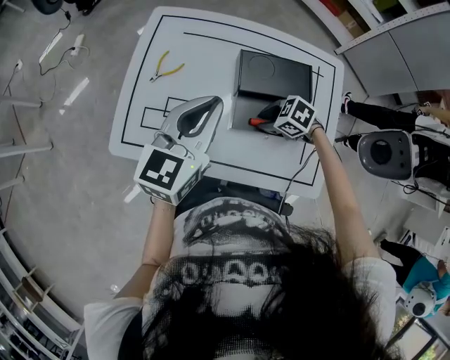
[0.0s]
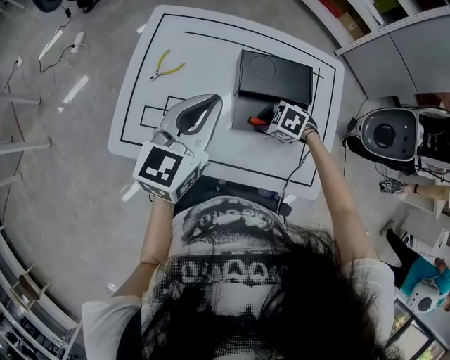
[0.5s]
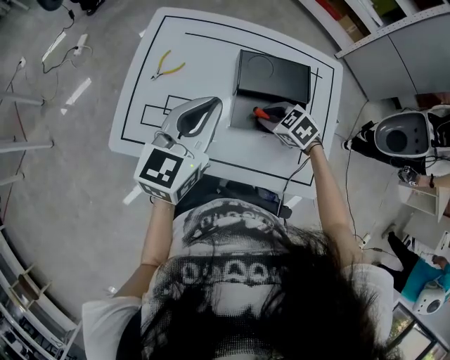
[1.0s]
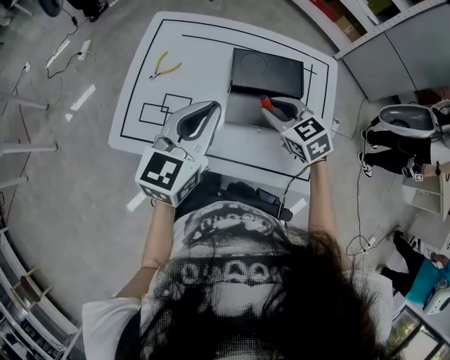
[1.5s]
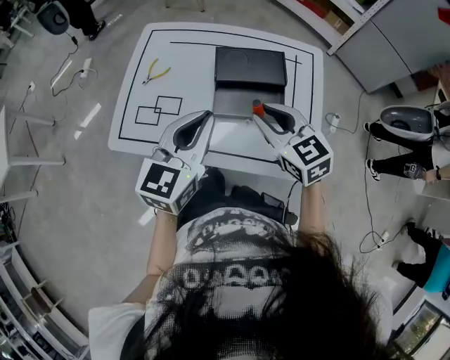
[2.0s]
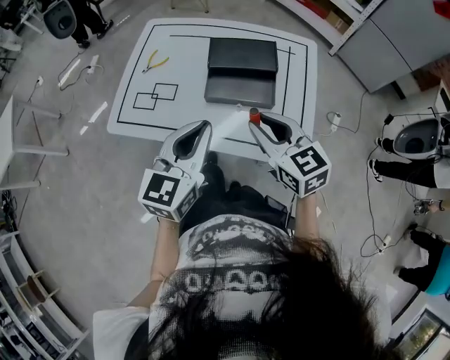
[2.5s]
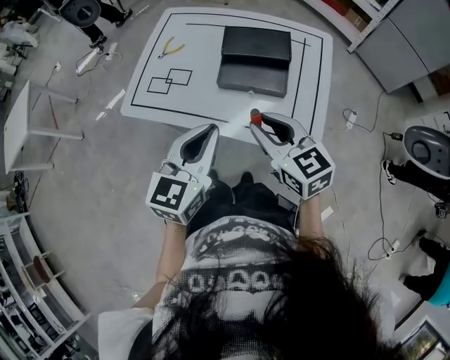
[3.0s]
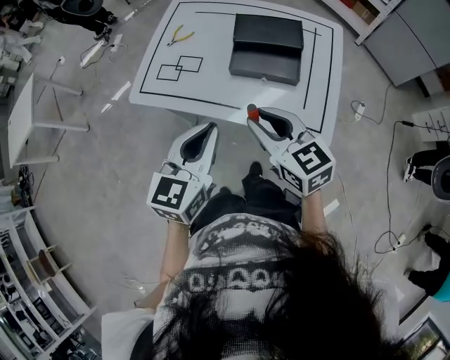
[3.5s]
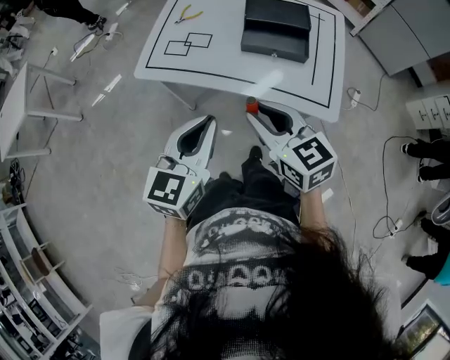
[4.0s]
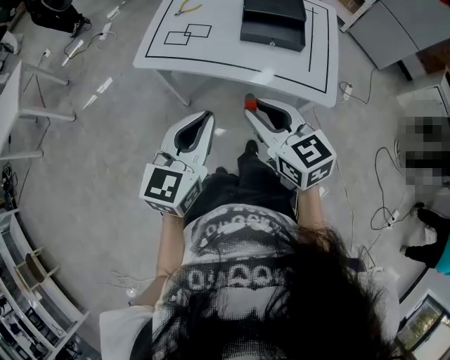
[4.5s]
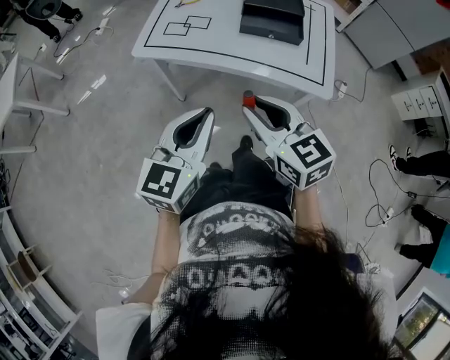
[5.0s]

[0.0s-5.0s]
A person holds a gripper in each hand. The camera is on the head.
0.0s to 2.5s: The right gripper heads upward, covering approximately 20 cm, and tips its fingers upward by roughly 40 degrees; the left gripper ends up about 20 cm from where it was.
2.5s to 5.0s: Both grippers move backward and to the left, some 30 cm.

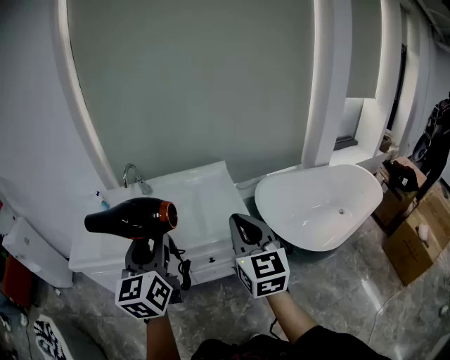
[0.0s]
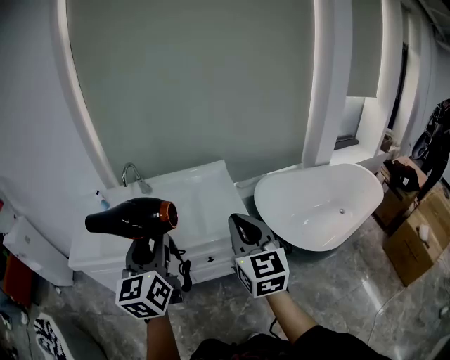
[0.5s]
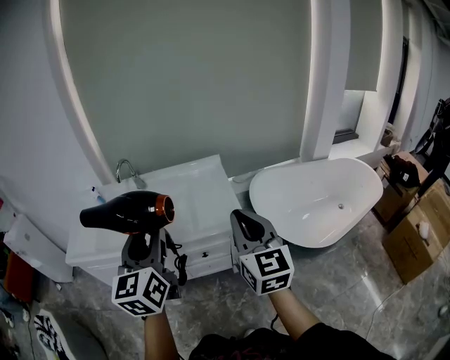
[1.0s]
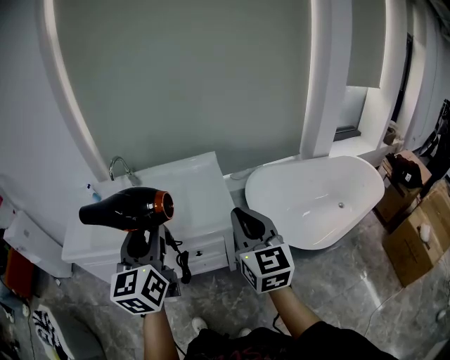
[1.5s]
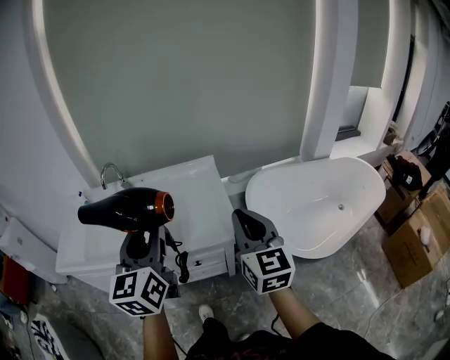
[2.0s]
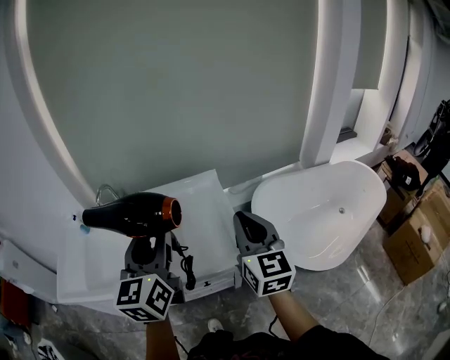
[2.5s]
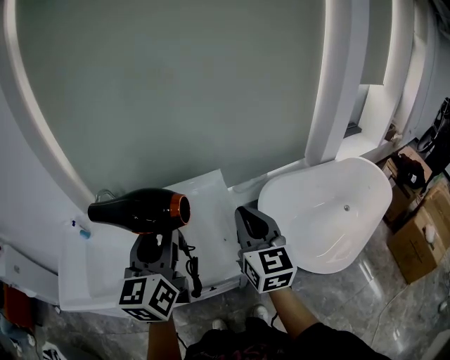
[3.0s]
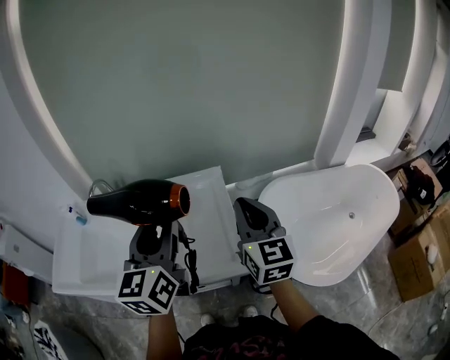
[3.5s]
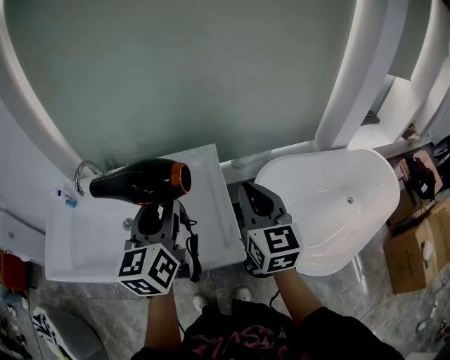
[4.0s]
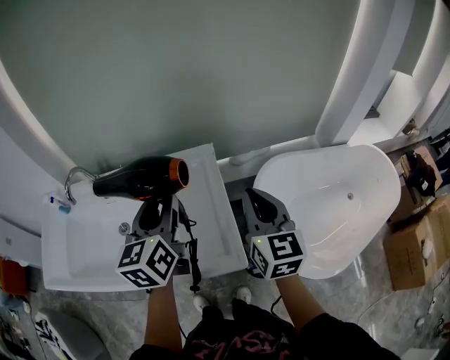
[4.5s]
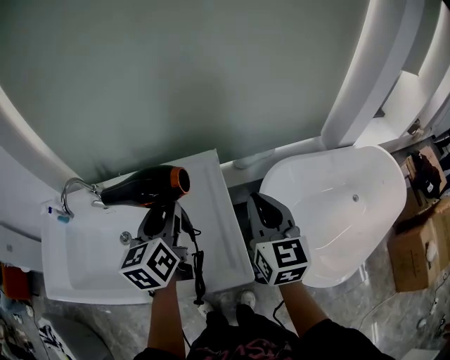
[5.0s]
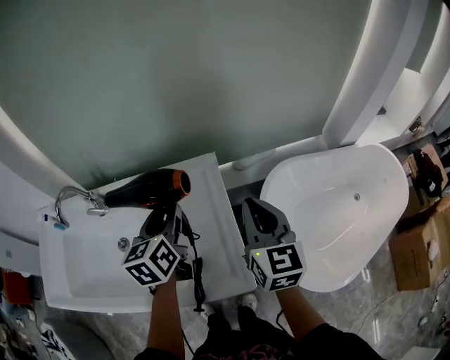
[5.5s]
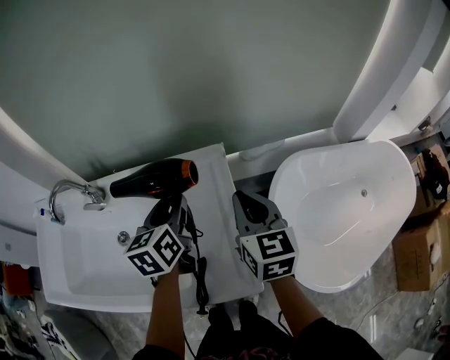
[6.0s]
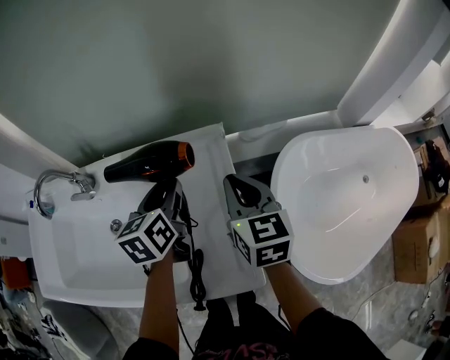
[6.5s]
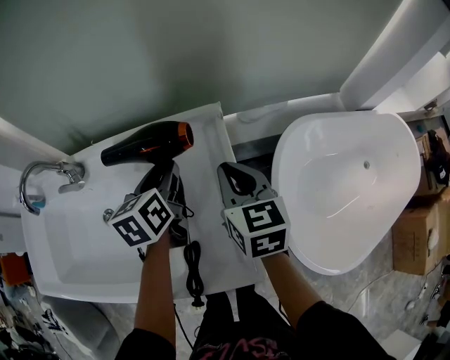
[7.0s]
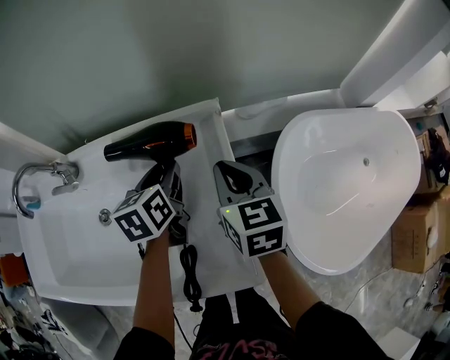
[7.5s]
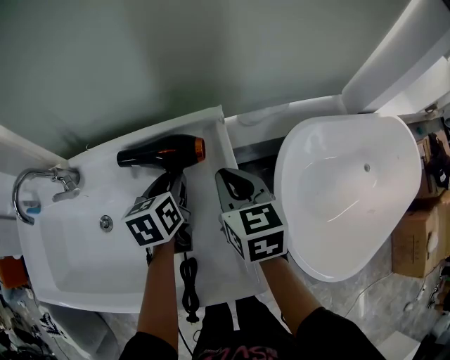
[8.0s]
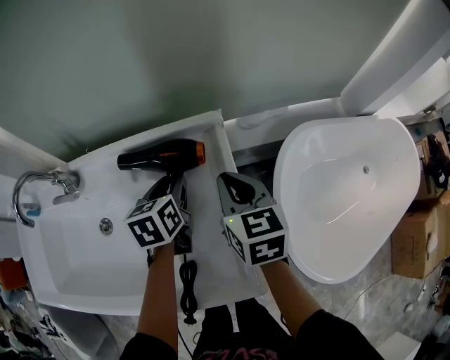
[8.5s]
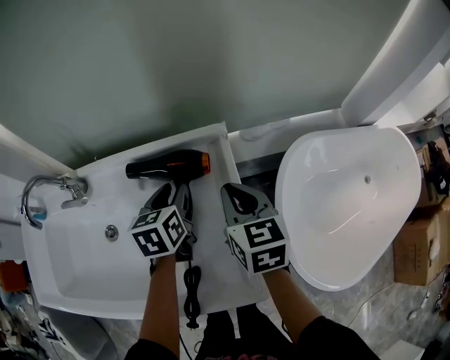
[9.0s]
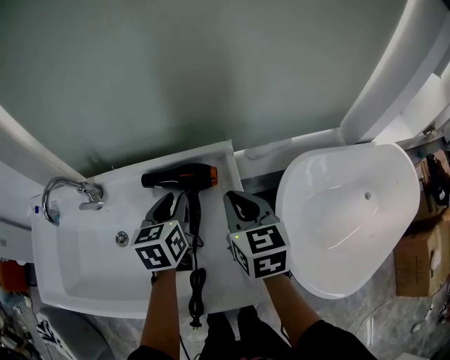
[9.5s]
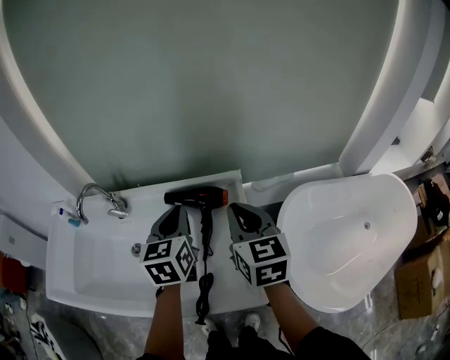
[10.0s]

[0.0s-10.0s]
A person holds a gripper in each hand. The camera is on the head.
0.0s to 2.0s: The grippers both shift to the right and forward by about 10 cm.
2.0s to 4.0s: The grippers both shift forward by about 20 cm.
4.0s to 6.0s: The left gripper moves downward and forward, approximately 25 cm, and turns by approximately 20 degrees; the right gripper travels forward and downward by roughly 15 cm.
6.0s to 8.0s: The two grippers go about 10 cm downward.
8.0s to 10.0s: Both grippers move upward, roughly 20 cm. The left gripper rotates approximately 20 degrees, and closes up.

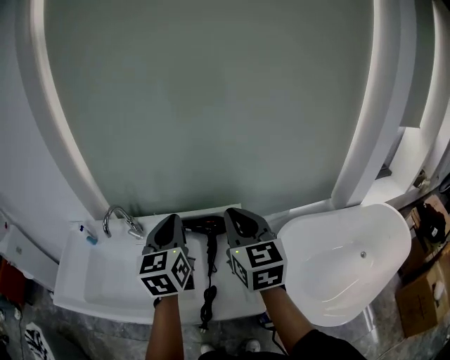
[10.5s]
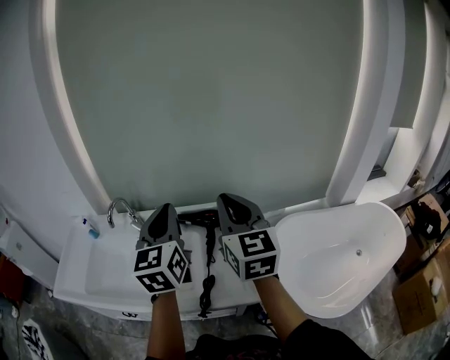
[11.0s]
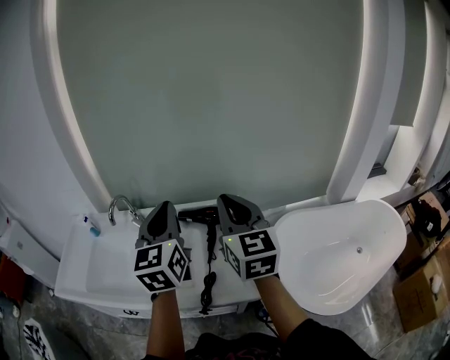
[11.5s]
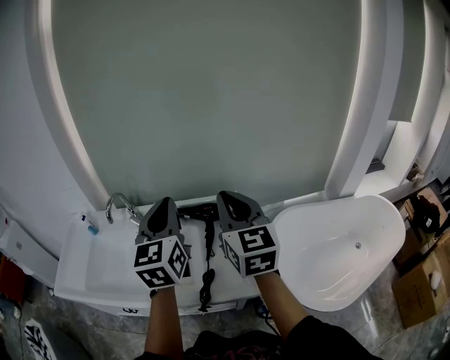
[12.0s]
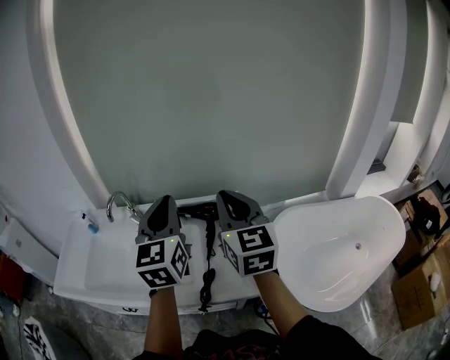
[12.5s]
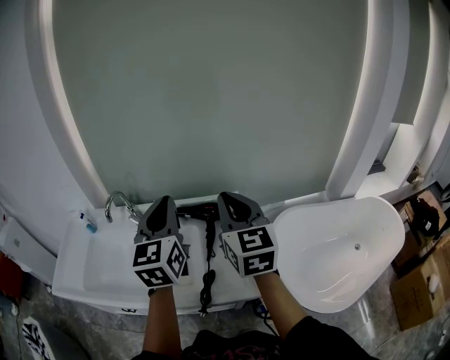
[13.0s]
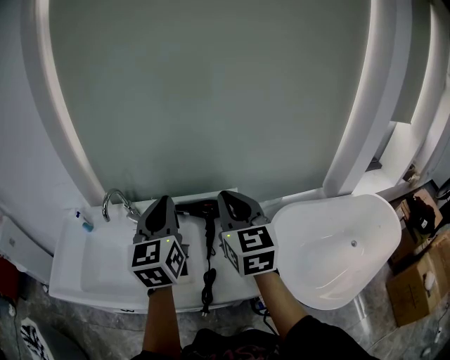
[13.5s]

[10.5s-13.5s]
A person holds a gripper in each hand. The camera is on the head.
10.5s to 12.0s: The left gripper moves backward, roughly 5 cm; the right gripper shifts by approximately 5 cm.
12.0s to 13.5s: The grippers move only a little.

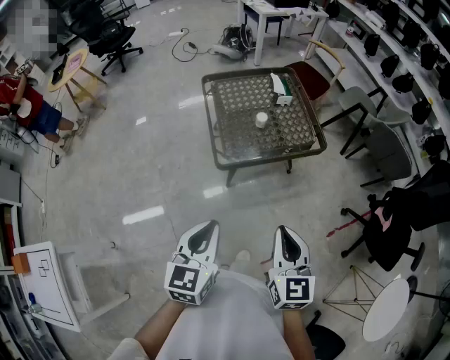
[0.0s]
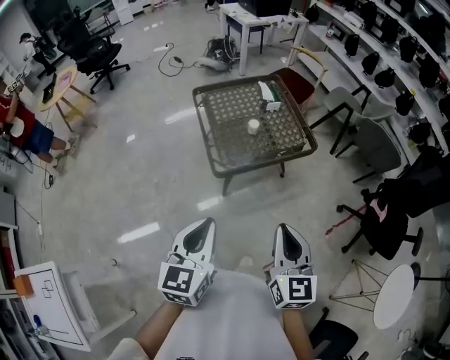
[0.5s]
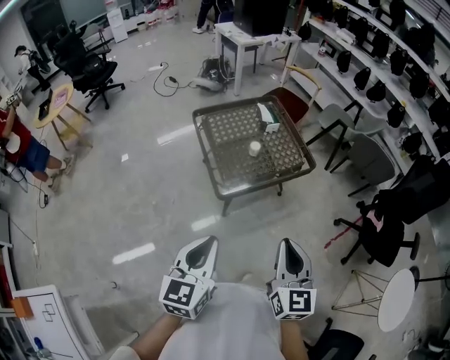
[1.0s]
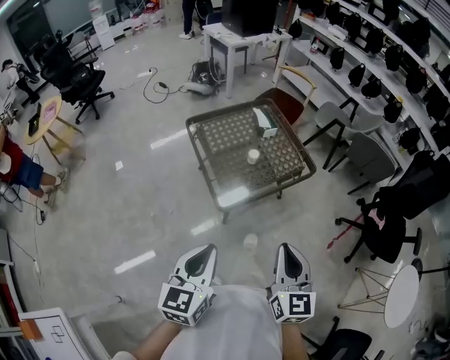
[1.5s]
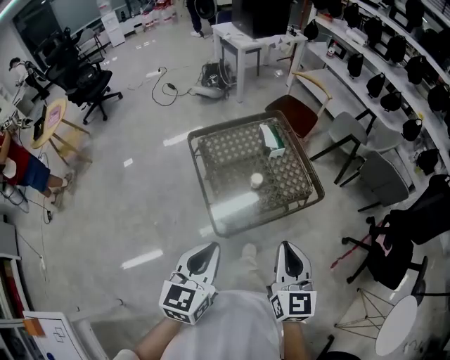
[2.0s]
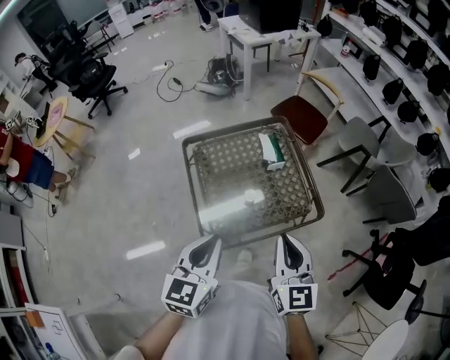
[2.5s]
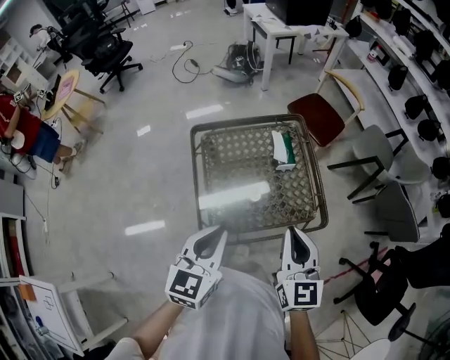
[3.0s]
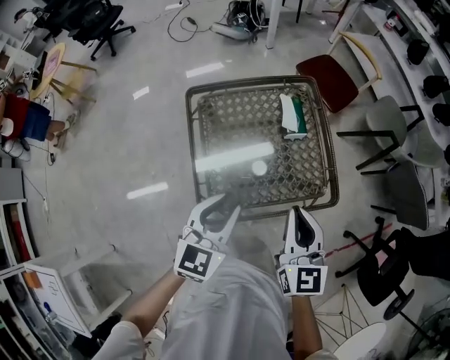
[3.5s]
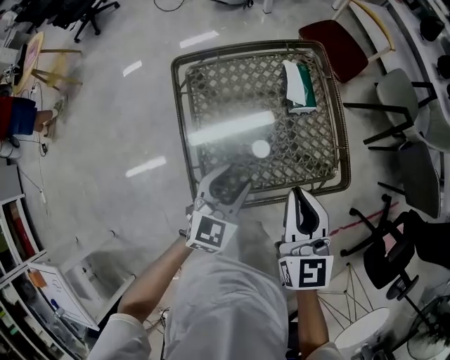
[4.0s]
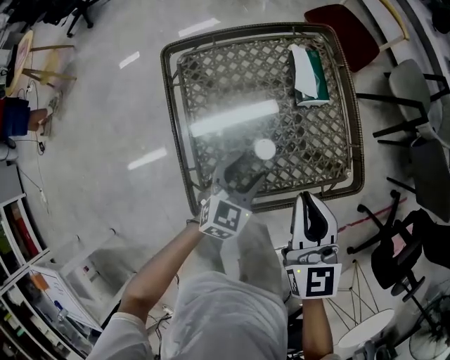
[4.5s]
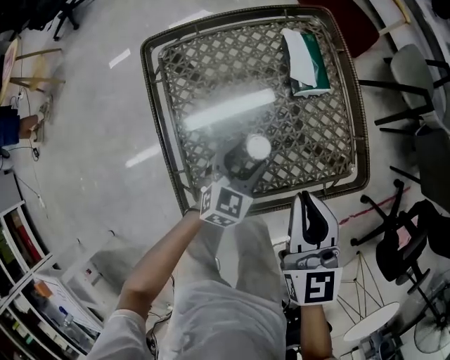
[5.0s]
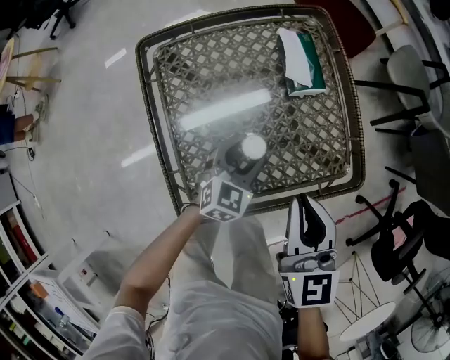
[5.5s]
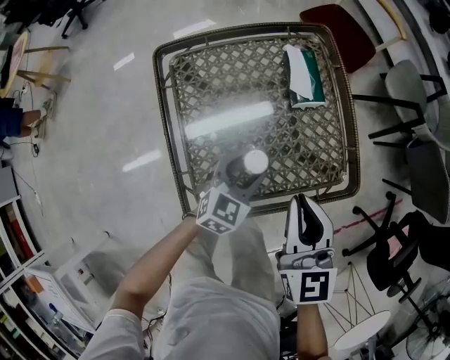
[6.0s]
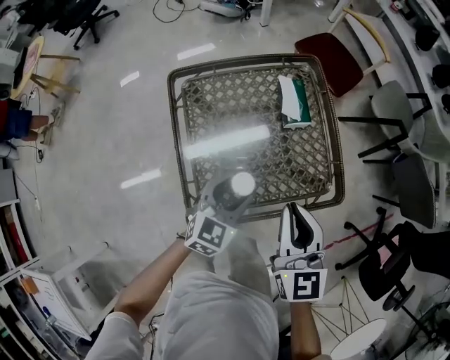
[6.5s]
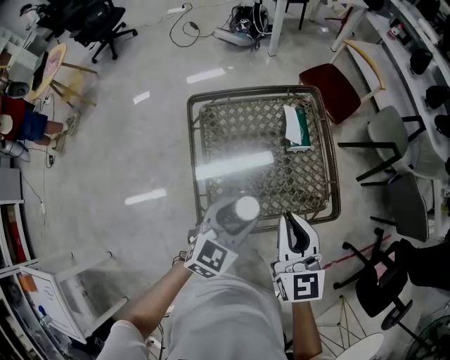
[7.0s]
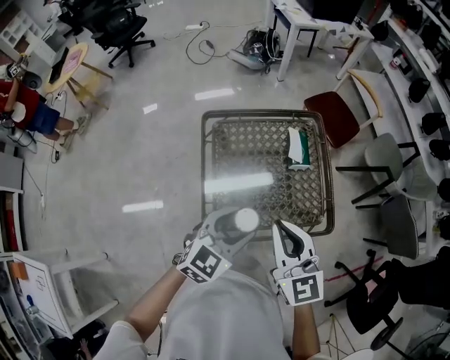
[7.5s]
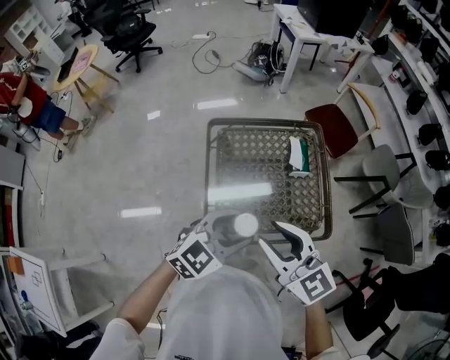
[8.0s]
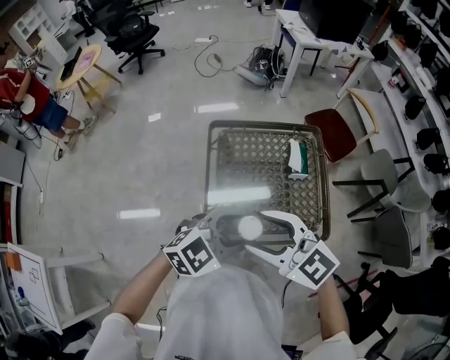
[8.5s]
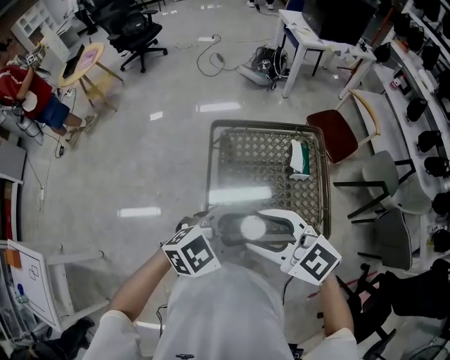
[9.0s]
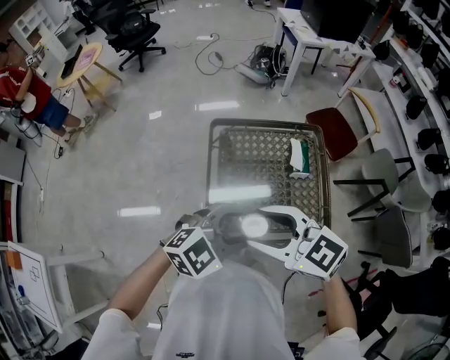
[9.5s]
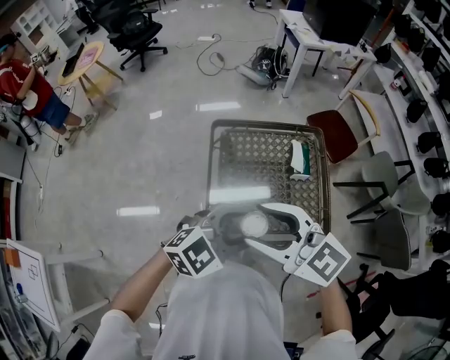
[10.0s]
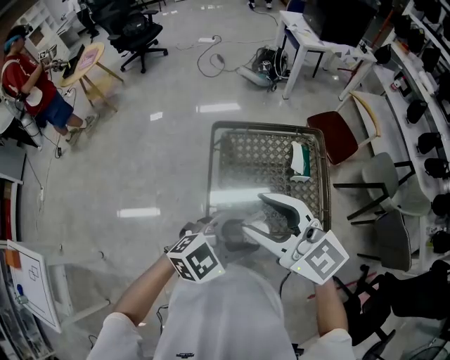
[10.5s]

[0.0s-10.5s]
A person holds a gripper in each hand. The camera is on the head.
0.0s to 2.0s: Both grippers travel together forward, approximately 20 cm.
2.0s to 4.0s: Both grippers move forward and downward, roughly 30 cm. The left gripper opens up.
4.0s to 6.5s: The right gripper moves approximately 10 cm downward and comes back. Meanwhile the left gripper reaches approximately 20 cm downward, then returns.
6.5s to 8.5s: Both grippers travel together upward, about 20 cm. The right gripper changes its angle by roughly 60 degrees, and opens, while the left gripper swivels roughly 20 degrees.
8.5s to 10.5s: The right gripper travels upward by some 5 cm.
